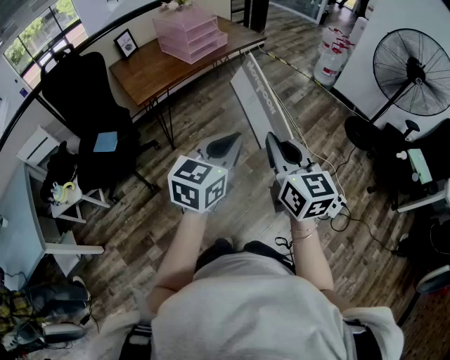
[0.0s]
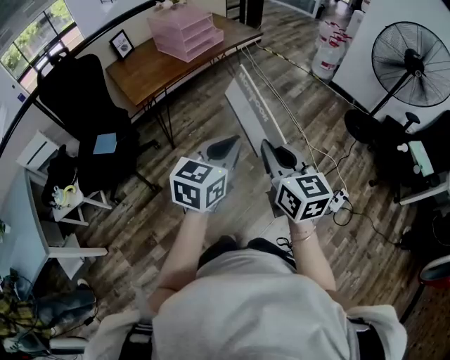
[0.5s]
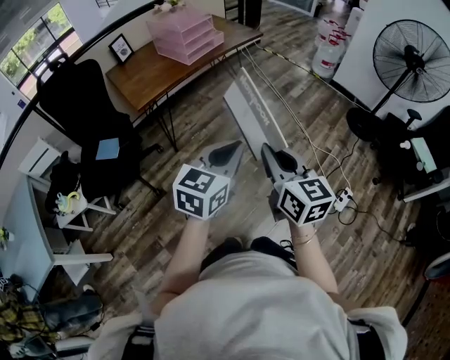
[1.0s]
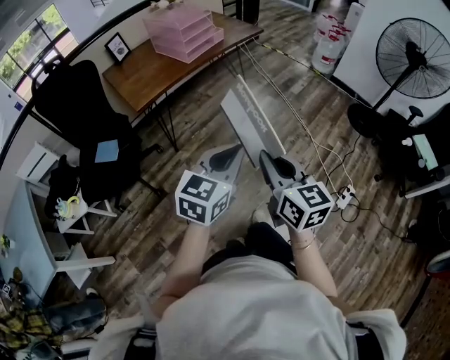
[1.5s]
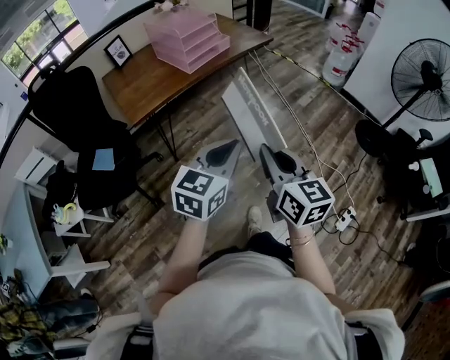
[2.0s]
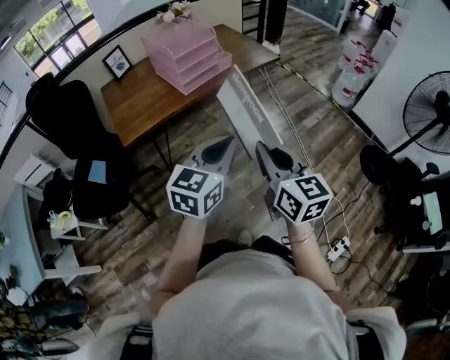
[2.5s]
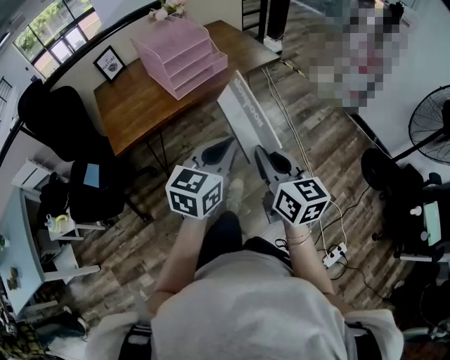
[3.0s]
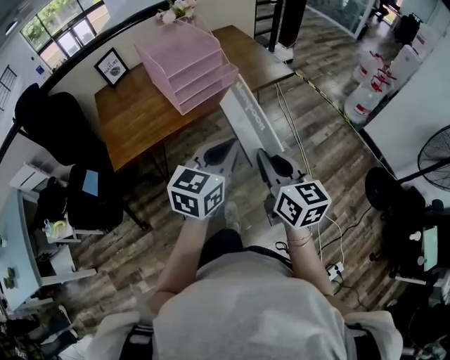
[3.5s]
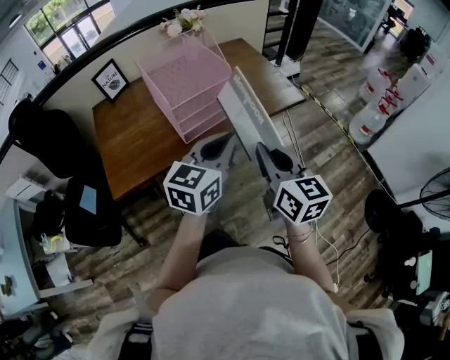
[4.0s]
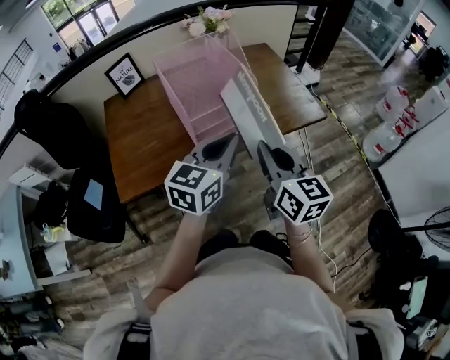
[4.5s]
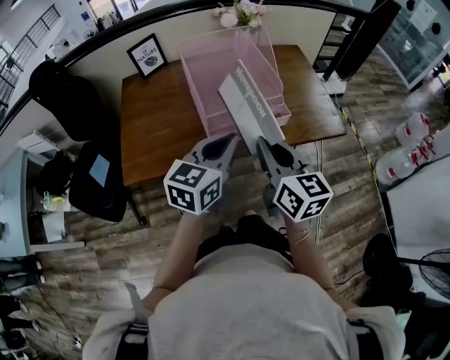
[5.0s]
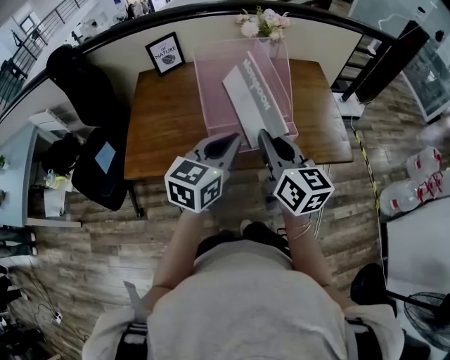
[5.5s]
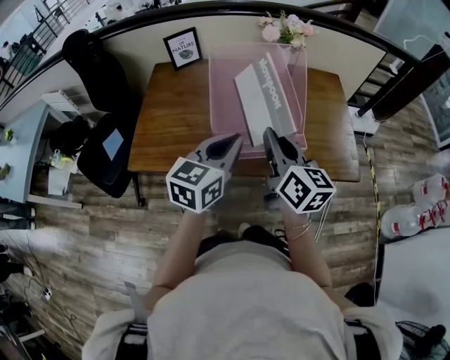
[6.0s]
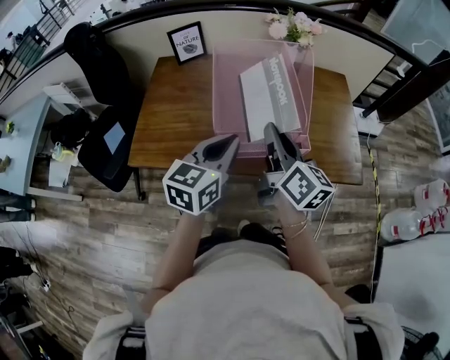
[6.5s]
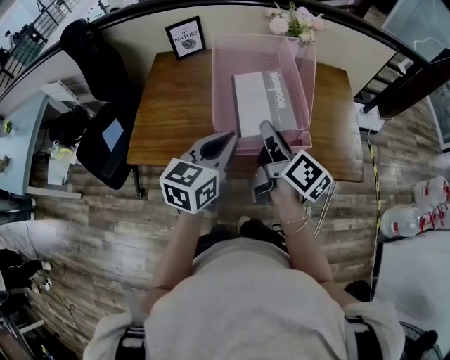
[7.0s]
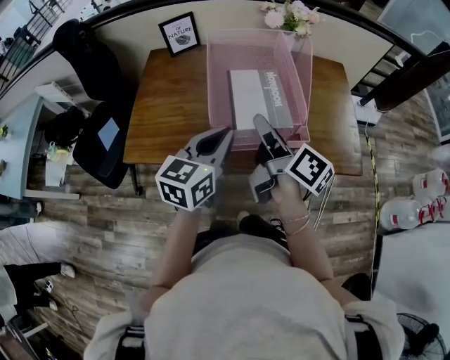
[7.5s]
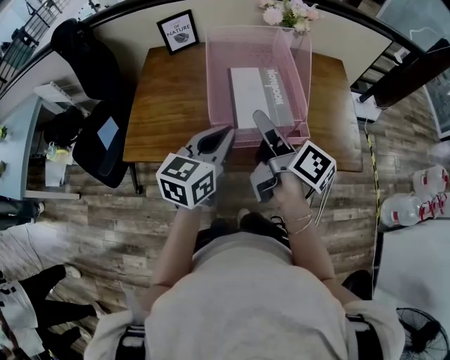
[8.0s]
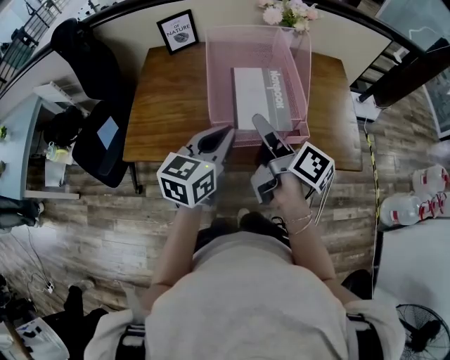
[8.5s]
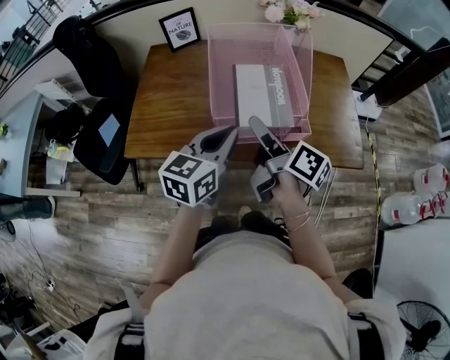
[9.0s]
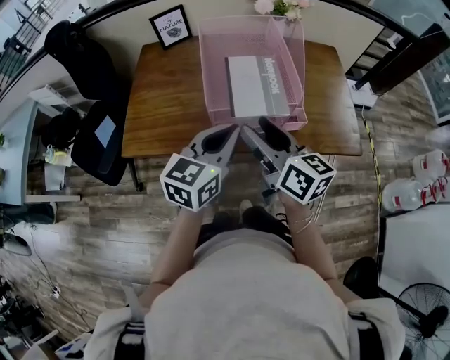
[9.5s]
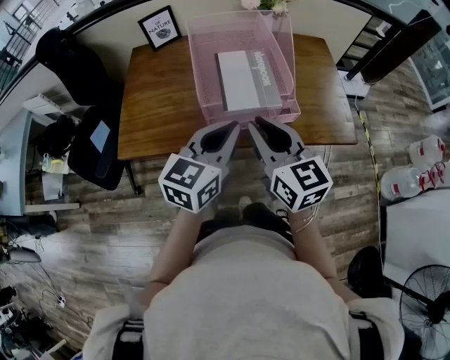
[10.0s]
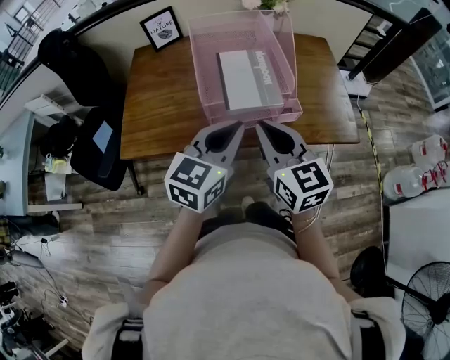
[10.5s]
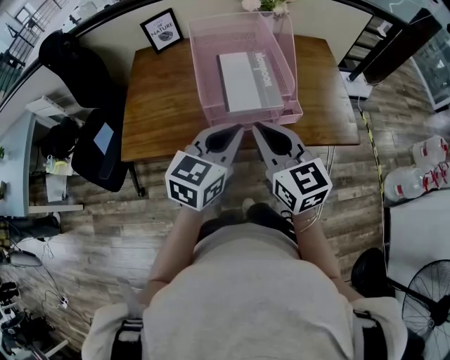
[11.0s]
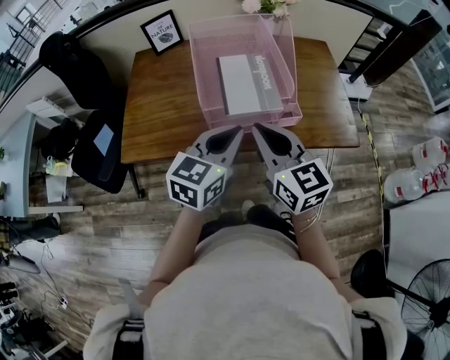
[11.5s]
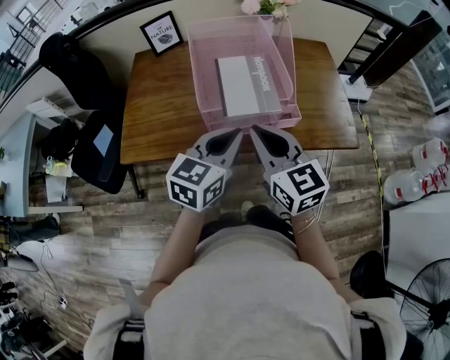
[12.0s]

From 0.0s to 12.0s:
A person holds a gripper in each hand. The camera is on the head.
From 0.0s to 2.0s: The grippers both shift forward by about 15 cm.
From 2.0s to 4.0s: The pair of grippers is taken forward, some 50 cm.
From 4.0s to 6.0s: The right gripper shifts by some 25 cm, and changes its angle by roughly 30 degrees. Meanwhile the left gripper moves roughly 15 cm, and rotates approximately 30 degrees.
From 6.0s to 8.0s: The right gripper rotates approximately 40 degrees, and opens.
From 8.0s to 10.0s: The right gripper is displaced backward by some 10 cm, twists roughly 60 degrees counterclockwise, seen from behind, and closes; the left gripper ends up some 5 cm from where it was.
From 10.0s to 12.0s: The grippers move only a little.

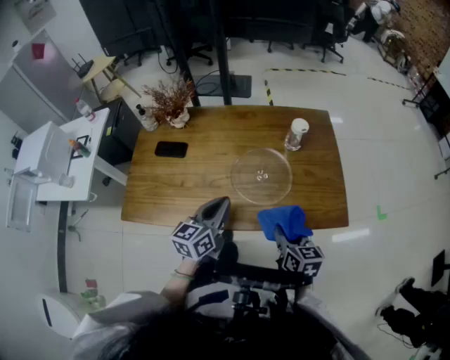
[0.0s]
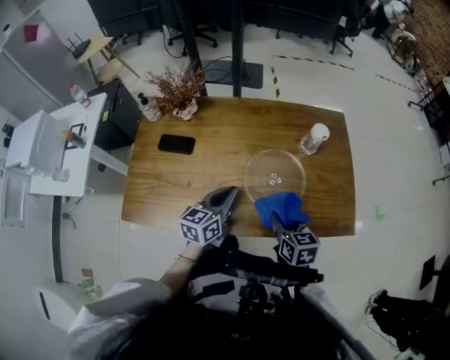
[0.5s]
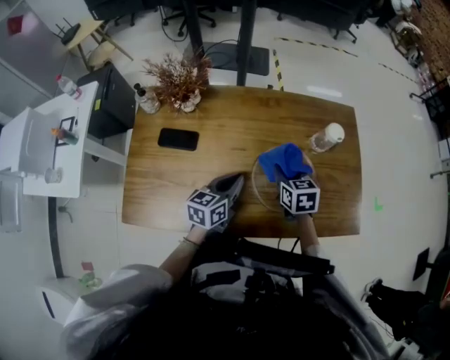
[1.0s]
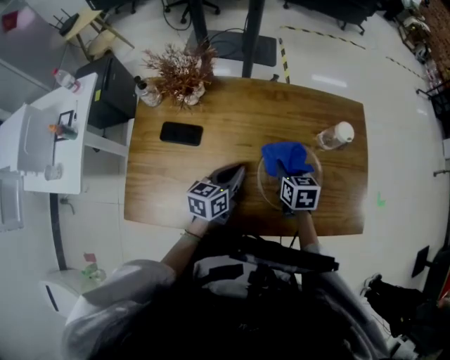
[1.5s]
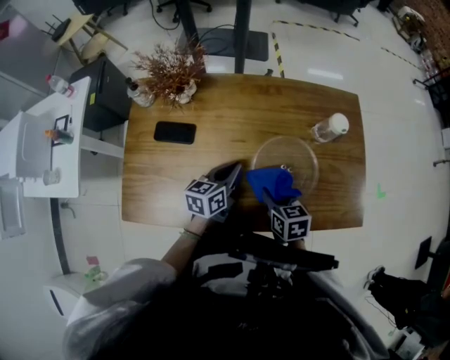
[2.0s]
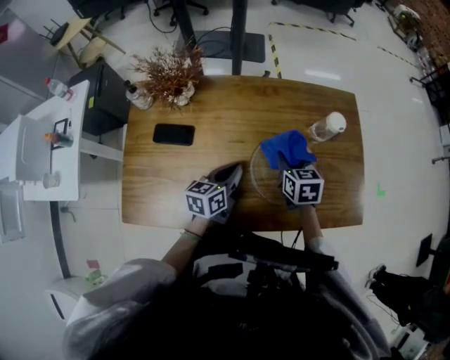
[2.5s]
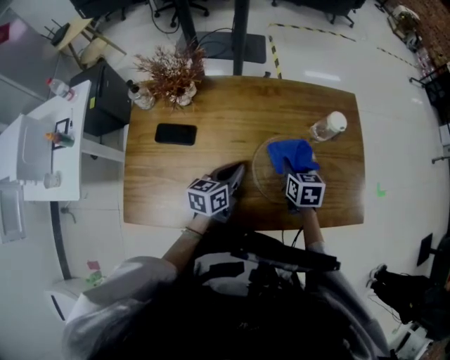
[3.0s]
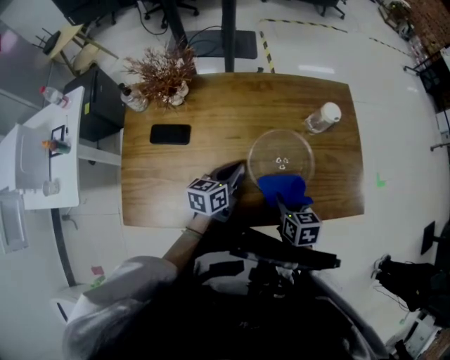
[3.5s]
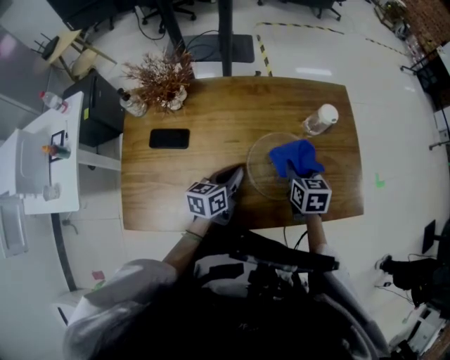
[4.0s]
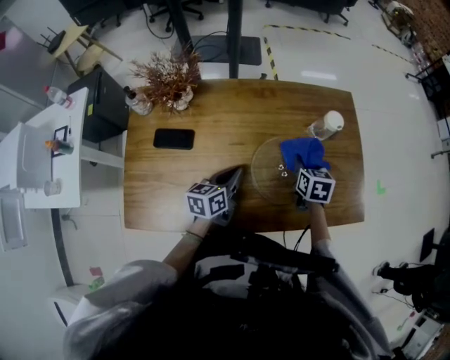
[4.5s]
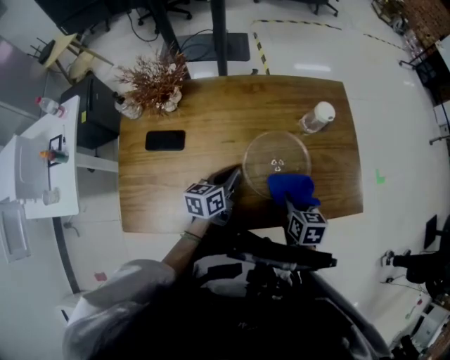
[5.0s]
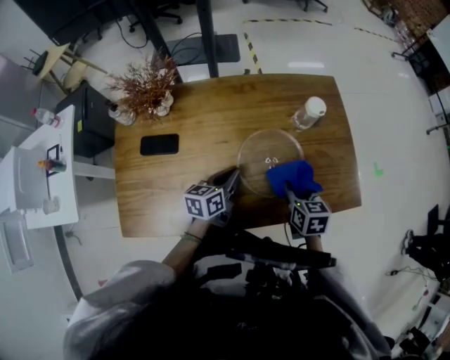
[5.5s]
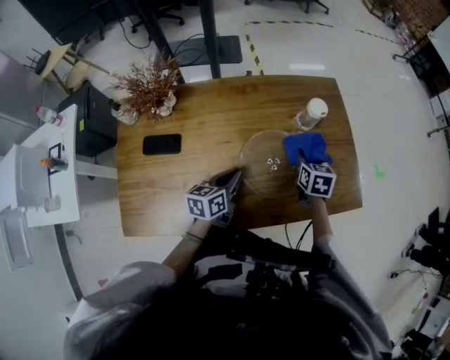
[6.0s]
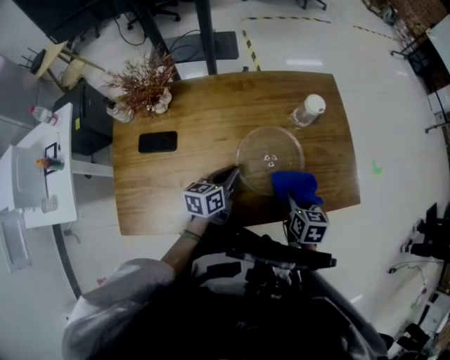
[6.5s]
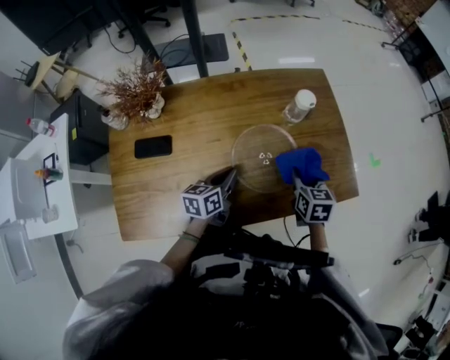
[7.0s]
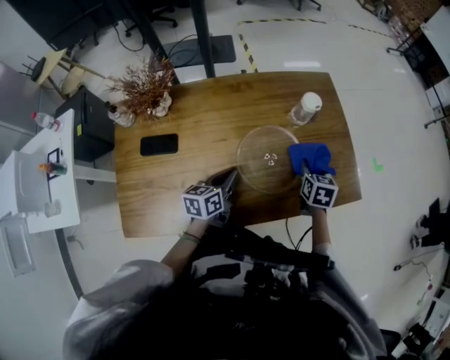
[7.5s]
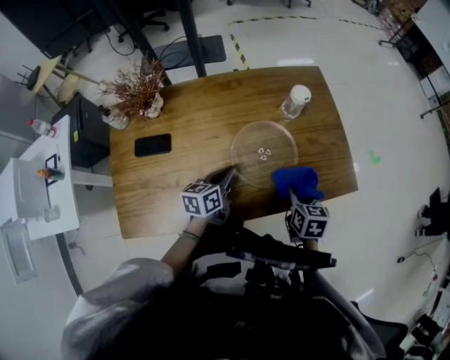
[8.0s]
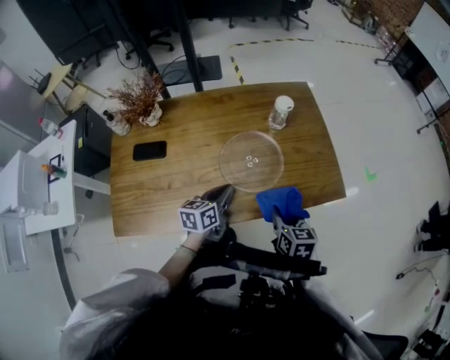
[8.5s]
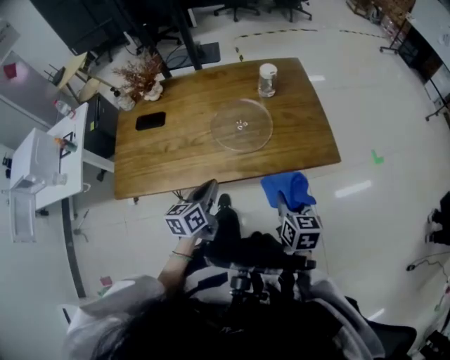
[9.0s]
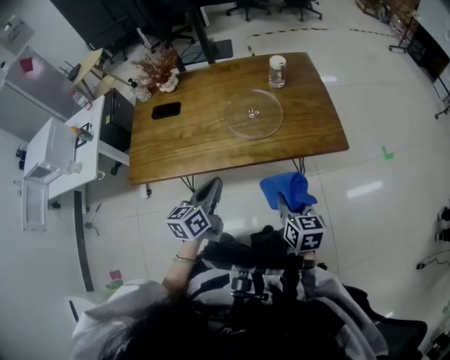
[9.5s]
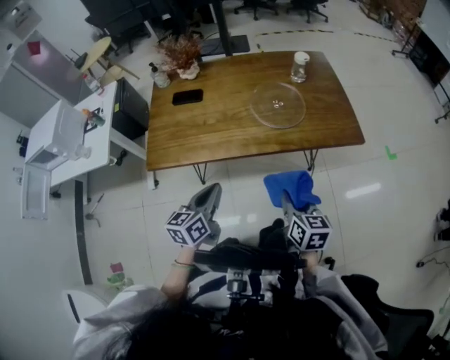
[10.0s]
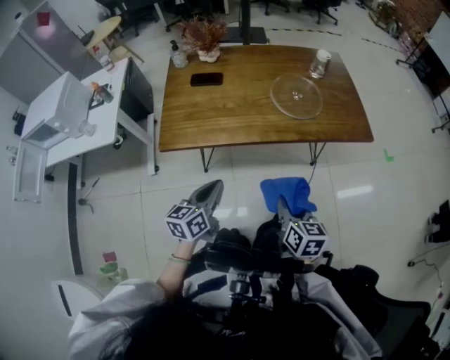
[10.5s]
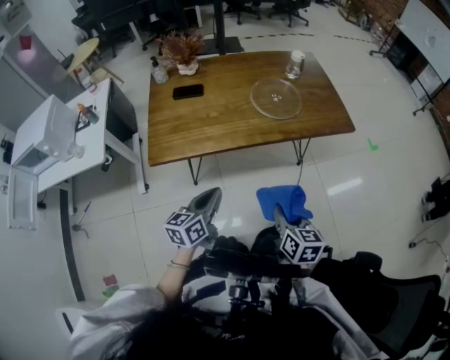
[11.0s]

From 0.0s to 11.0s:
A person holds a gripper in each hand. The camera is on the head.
From 0.0s to 2.0s: The right gripper is displaced forward, to the left and downward by approximately 20 cm. The left gripper goes approximately 20 cm forward, downward and to the left.
From 2.0s to 3.5s: The right gripper travels to the right by approximately 5 cm, and moves about 10 cm forward and comes back.
From 3.5s to 5.5s: The right gripper moves some 15 cm forward and comes back.
From 5.5s to 7.5s: The right gripper swings forward and backward, about 15 cm each way, with 2 reversals.
From 7.5s to 9.0s: The right gripper travels backward by roughly 30 cm, while the left gripper goes about 20 cm backward and to the right.
From 9.0s to 11.0s: Both grippers move backward and to the left, some 30 cm.

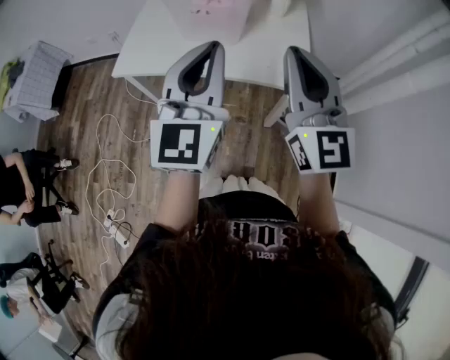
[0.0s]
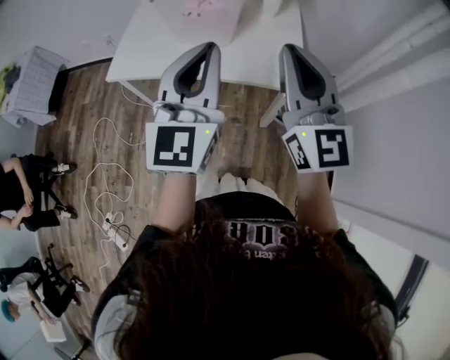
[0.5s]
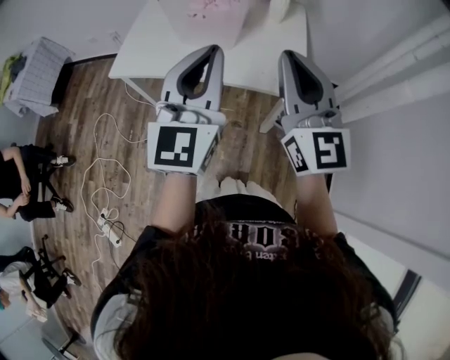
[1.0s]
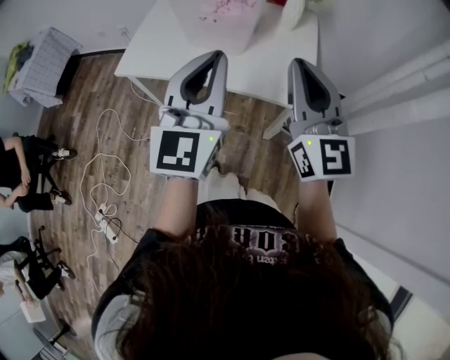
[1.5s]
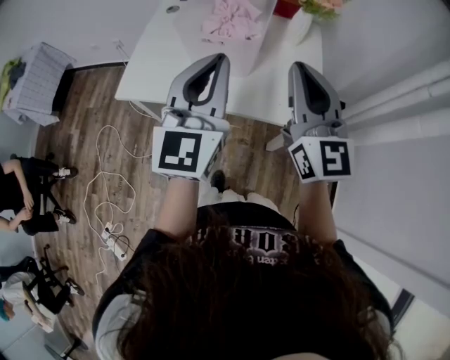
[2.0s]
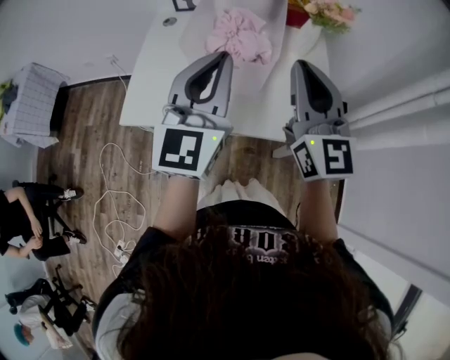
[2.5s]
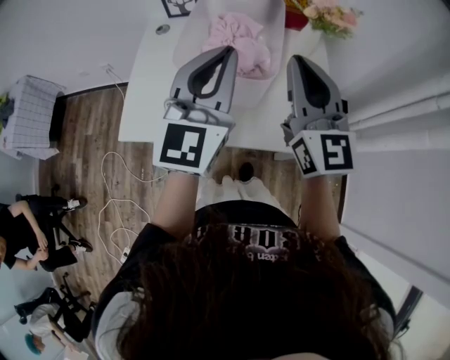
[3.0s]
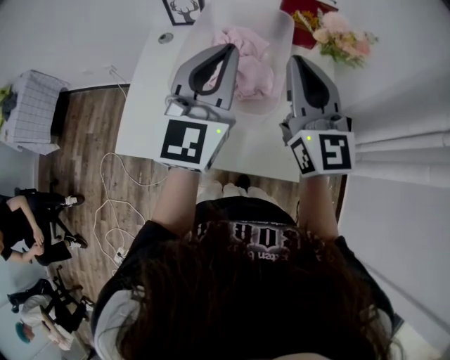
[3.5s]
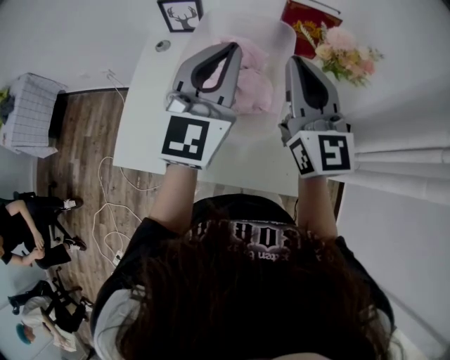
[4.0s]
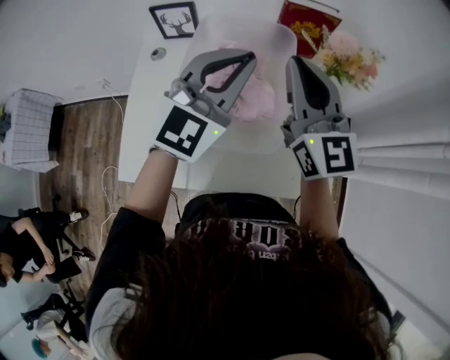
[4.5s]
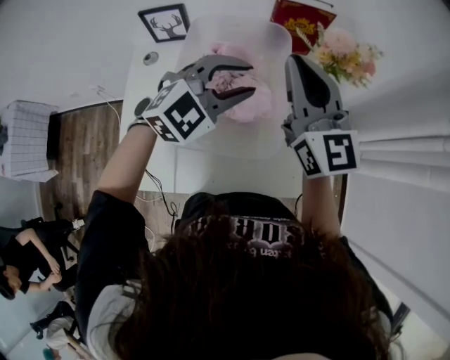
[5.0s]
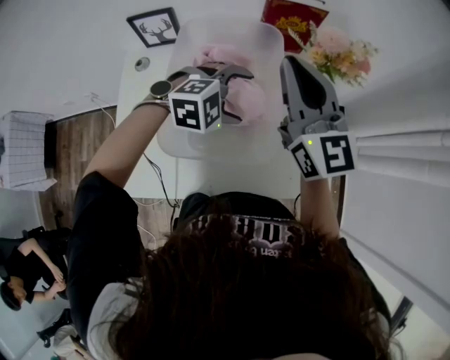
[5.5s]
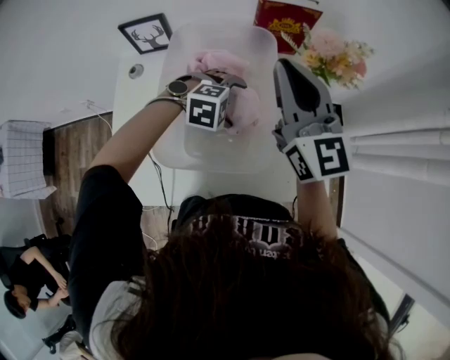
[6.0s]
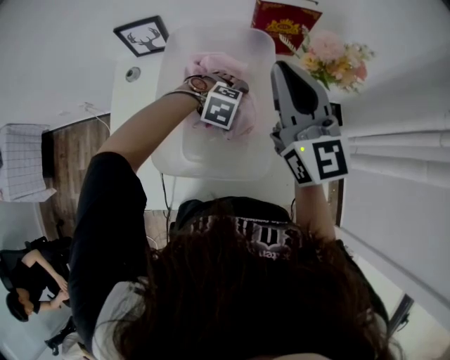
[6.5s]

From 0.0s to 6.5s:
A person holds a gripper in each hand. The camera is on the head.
From 0.0s to 2.0s: Both grippers travel together forward, about 10 cm.
From 2.0s to 4.5s: The two grippers go about 30 cm forward. The left gripper rotates about 30 degrees.
From 4.5s to 6.5s: The left gripper shifts approximately 35 cm downward, tips its fingers downward by about 80 degrees, and opens its fingers.
